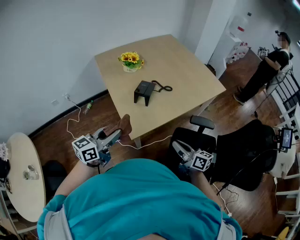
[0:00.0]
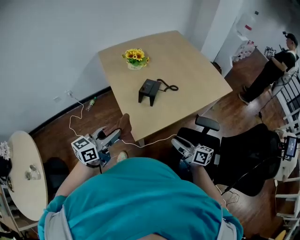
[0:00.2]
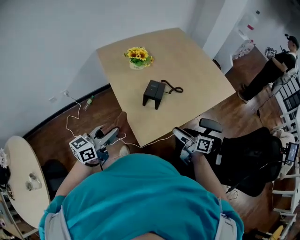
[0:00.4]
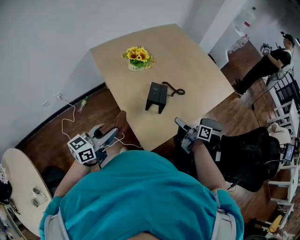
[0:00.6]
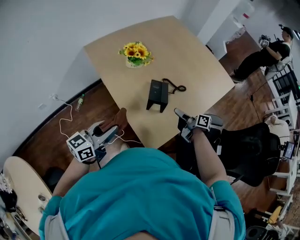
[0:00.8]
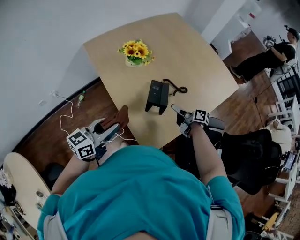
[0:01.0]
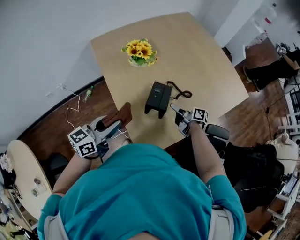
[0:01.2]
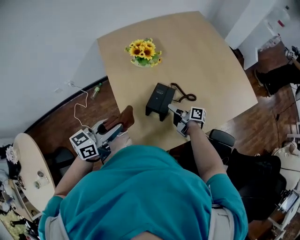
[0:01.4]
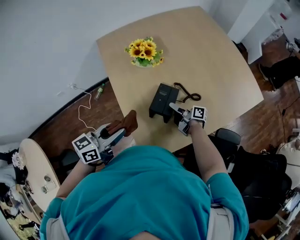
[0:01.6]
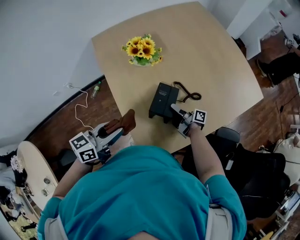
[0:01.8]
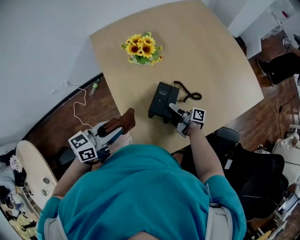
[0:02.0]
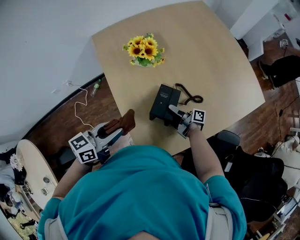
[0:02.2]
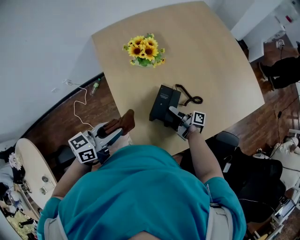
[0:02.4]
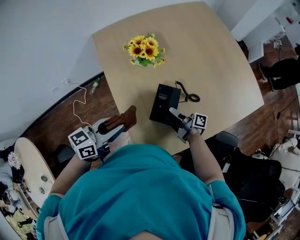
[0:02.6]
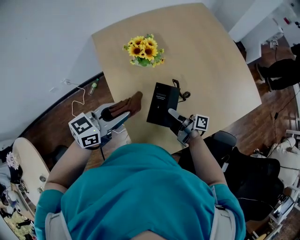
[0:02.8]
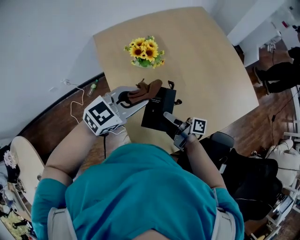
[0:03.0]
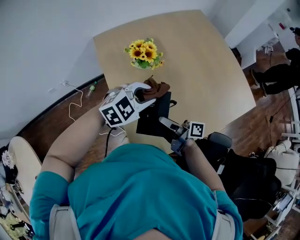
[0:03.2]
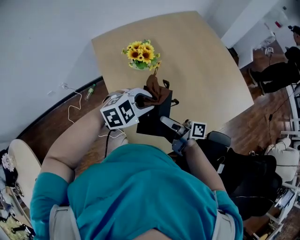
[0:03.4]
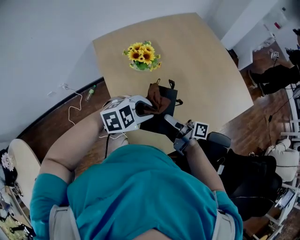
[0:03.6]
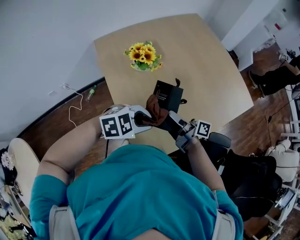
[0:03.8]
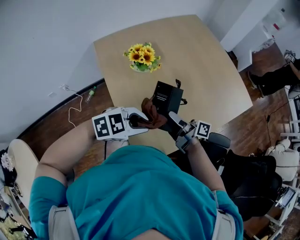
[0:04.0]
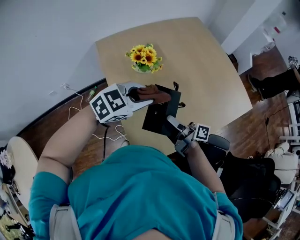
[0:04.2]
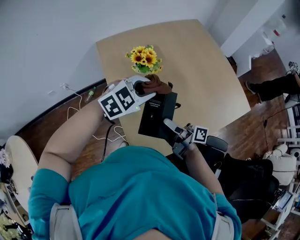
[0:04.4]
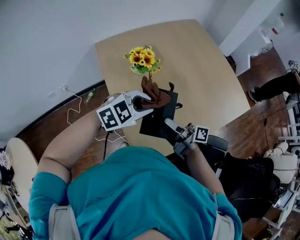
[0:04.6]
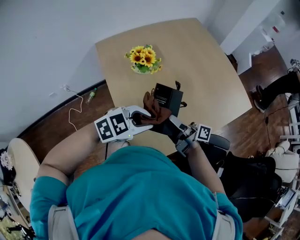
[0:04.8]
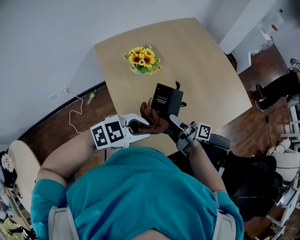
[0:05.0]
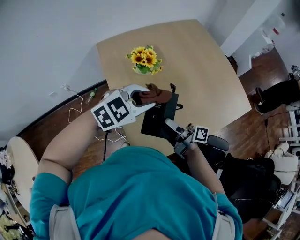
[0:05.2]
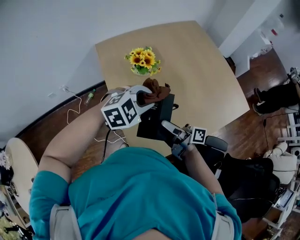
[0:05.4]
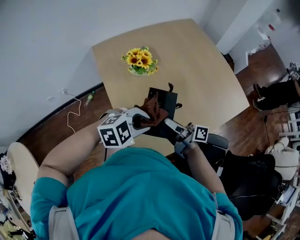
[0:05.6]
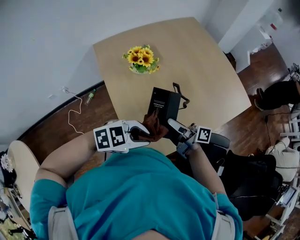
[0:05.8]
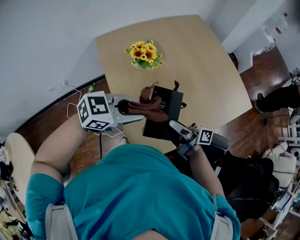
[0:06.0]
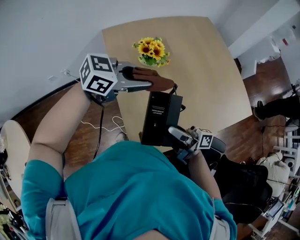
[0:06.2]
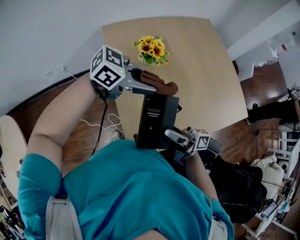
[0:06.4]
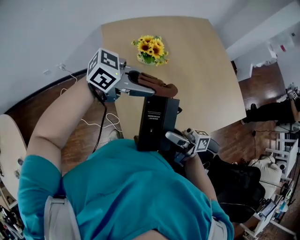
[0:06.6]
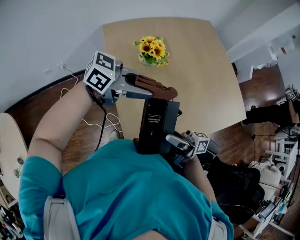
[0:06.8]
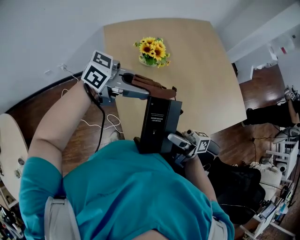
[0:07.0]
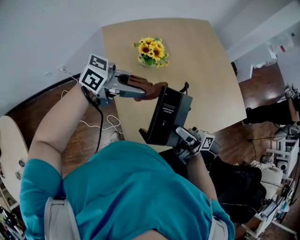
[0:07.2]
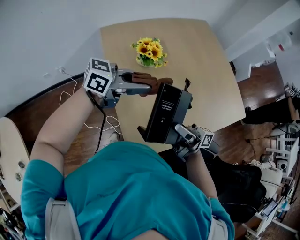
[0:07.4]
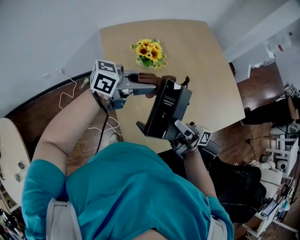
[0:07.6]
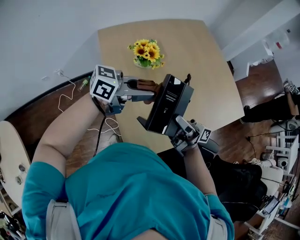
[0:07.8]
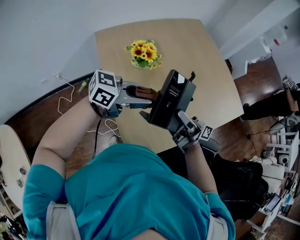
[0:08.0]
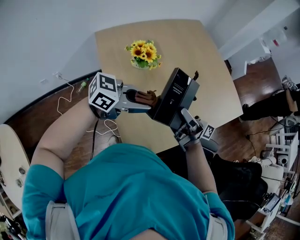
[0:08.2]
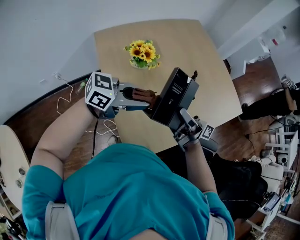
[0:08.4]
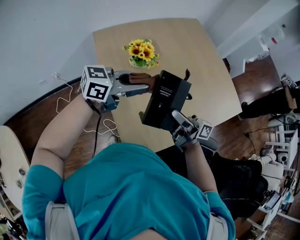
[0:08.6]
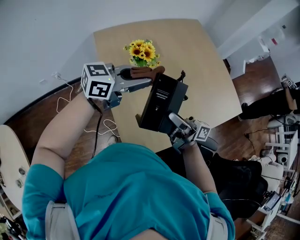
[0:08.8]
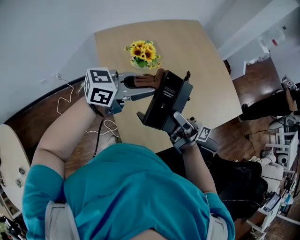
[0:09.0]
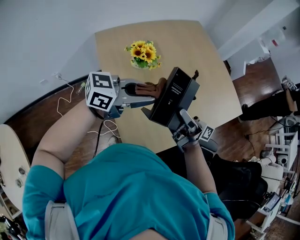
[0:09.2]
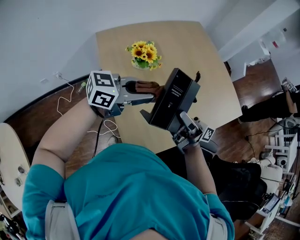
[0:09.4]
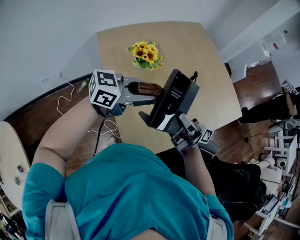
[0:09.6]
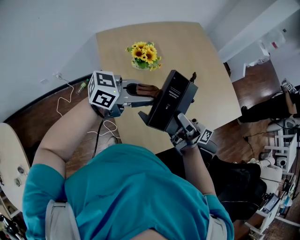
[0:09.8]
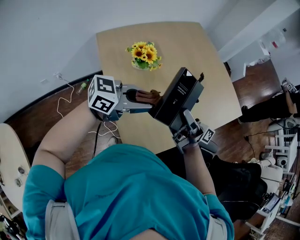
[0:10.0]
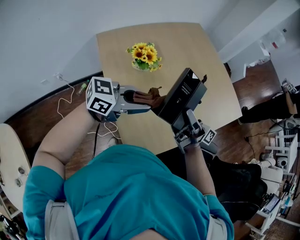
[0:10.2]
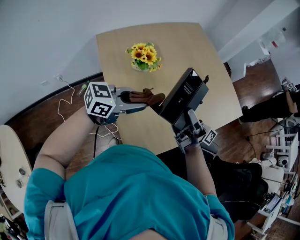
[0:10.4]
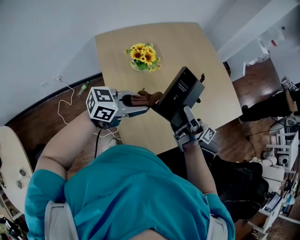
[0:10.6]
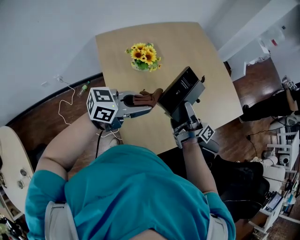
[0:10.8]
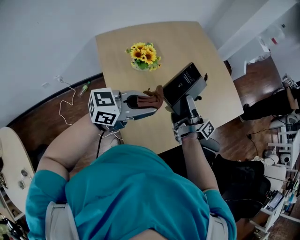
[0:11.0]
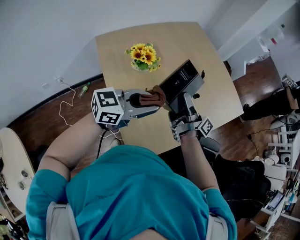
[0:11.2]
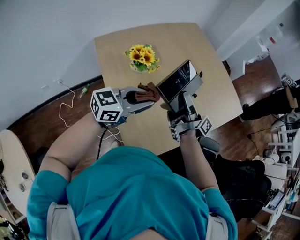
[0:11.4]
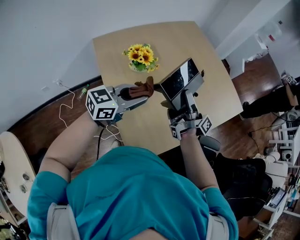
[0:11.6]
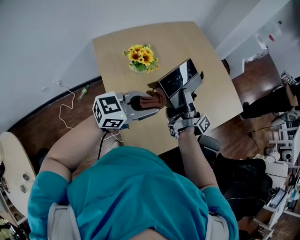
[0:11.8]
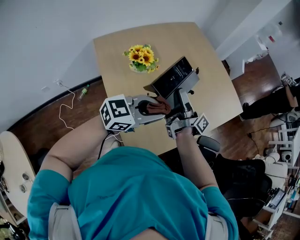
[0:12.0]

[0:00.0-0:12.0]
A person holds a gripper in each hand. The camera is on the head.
0:00.0 to 0:01.6: The left gripper changes place by roughly 25 cm.
0:01.6 to 0:03.0: The left gripper ends up about 15 cm from where it was, and rotates approximately 40 degrees.
0:03.0 to 0:04.4: The left gripper swivels some 20 degrees.
0:04.4 to 0:06.0: The left gripper travels downward and back again, about 5 cm each way, and turns by roughly 30 degrees.
0:06.0 to 0:07.6: The left gripper changes place by some 10 cm, and changes its angle by approximately 30 degrees.
0:09.0 to 0:10.4: The left gripper moves downward, approximately 5 cm.
0:10.4 to 0:12.0: The left gripper changes place by about 5 cm.

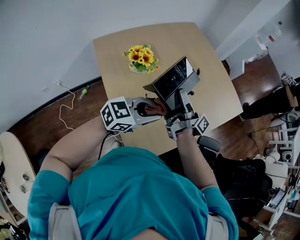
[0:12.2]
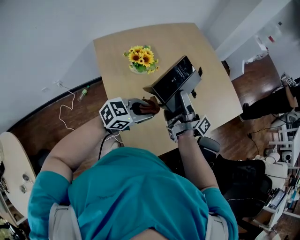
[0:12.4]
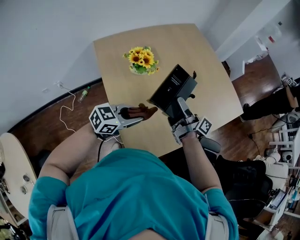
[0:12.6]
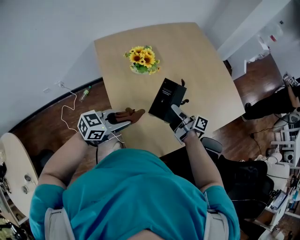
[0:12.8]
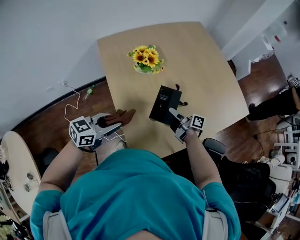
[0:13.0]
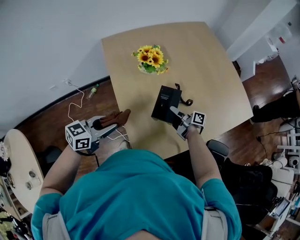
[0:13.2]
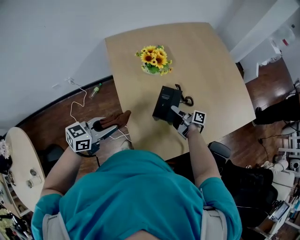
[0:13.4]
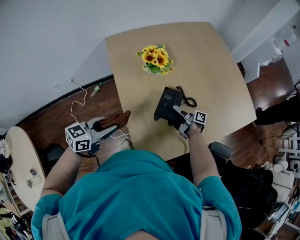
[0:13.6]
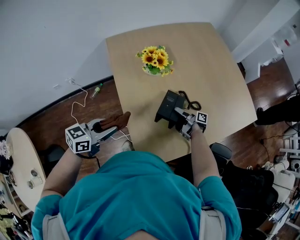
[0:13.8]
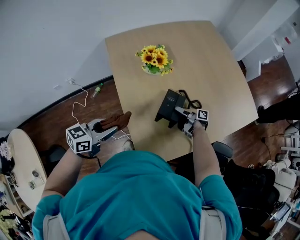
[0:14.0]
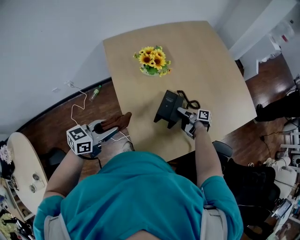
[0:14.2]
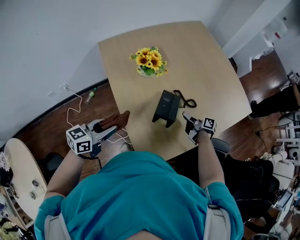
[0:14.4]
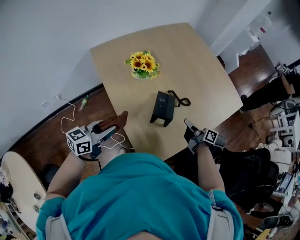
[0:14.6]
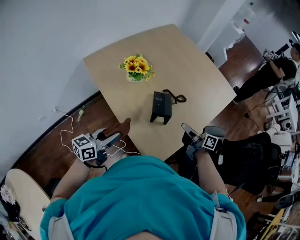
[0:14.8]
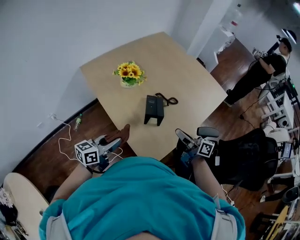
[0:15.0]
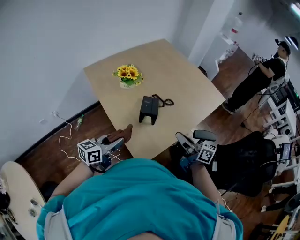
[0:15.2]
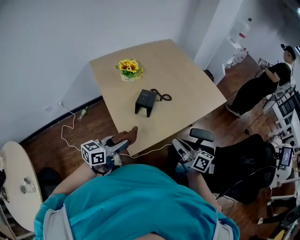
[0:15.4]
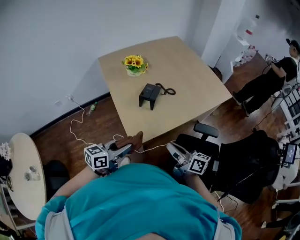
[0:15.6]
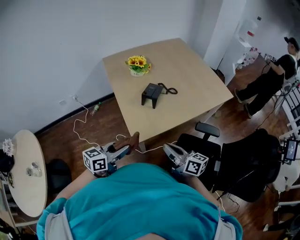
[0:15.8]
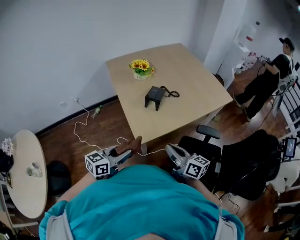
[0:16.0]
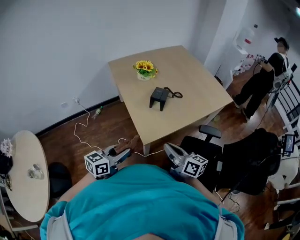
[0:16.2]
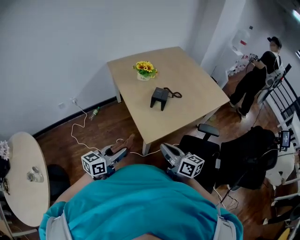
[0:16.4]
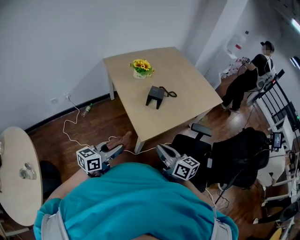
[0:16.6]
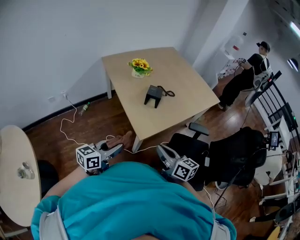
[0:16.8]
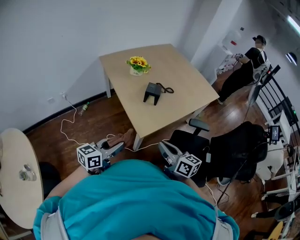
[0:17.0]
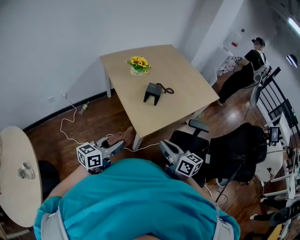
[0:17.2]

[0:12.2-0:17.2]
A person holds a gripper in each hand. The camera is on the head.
0:12.2 to 0:13.8: The left gripper moves approximately 25 cm, and swivels some 40 degrees.
0:13.8 to 0:15.6: The left gripper shifts by about 30 cm.
0:15.6 to 0:17.2: The left gripper ends up some 15 cm from where it was.

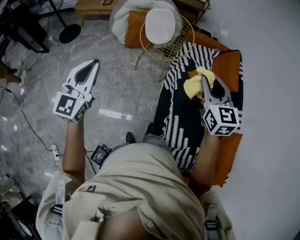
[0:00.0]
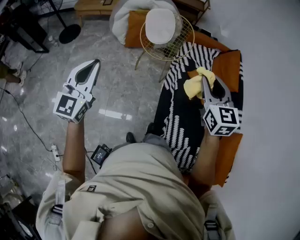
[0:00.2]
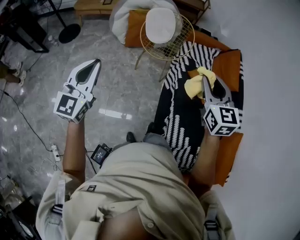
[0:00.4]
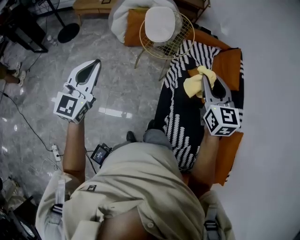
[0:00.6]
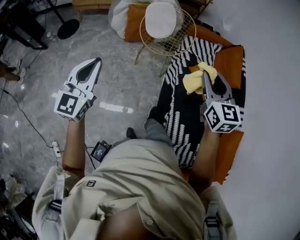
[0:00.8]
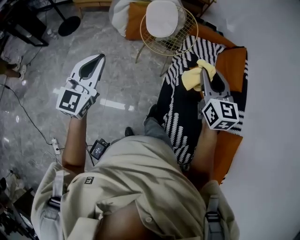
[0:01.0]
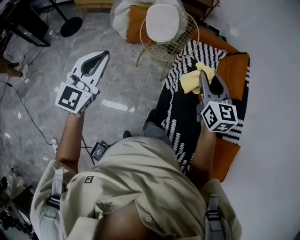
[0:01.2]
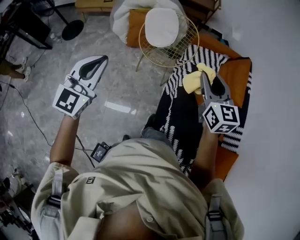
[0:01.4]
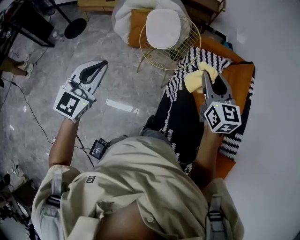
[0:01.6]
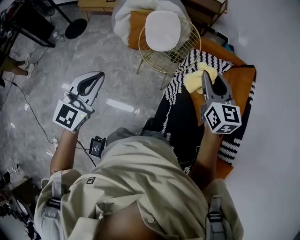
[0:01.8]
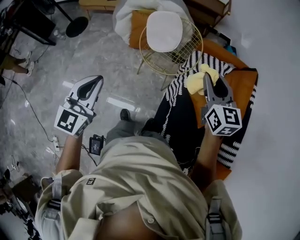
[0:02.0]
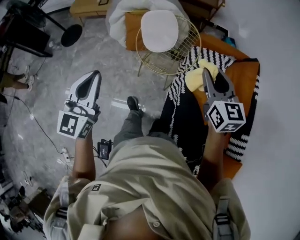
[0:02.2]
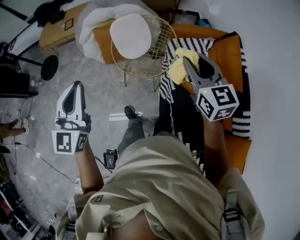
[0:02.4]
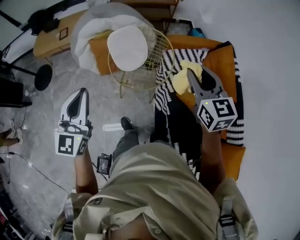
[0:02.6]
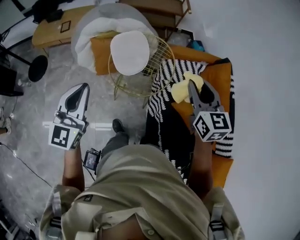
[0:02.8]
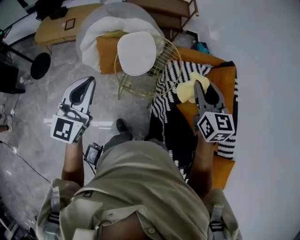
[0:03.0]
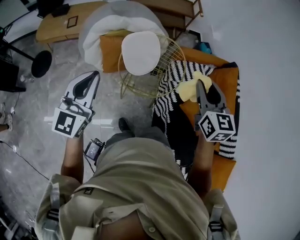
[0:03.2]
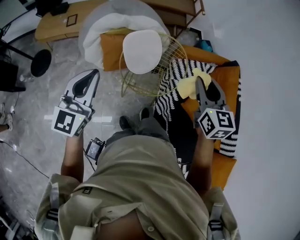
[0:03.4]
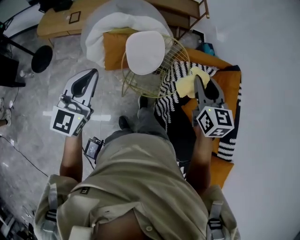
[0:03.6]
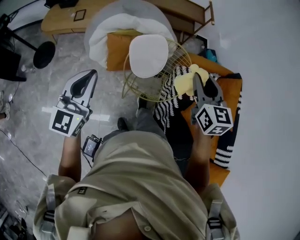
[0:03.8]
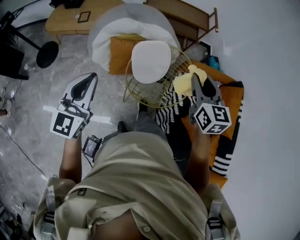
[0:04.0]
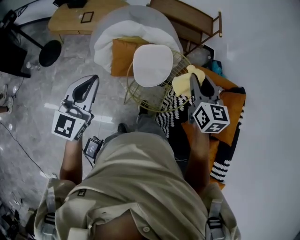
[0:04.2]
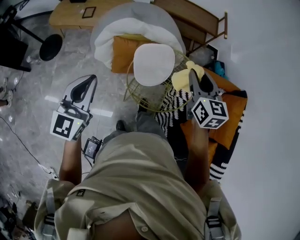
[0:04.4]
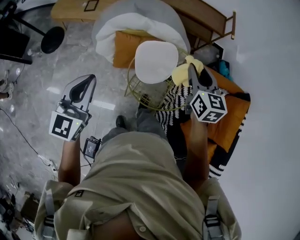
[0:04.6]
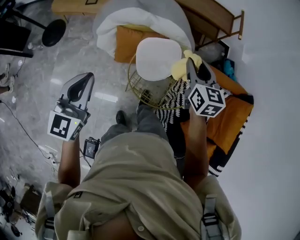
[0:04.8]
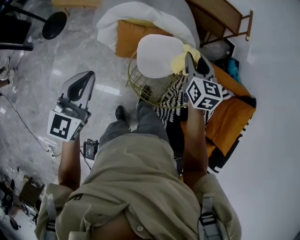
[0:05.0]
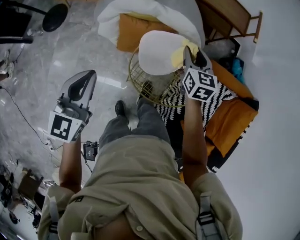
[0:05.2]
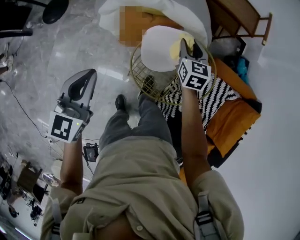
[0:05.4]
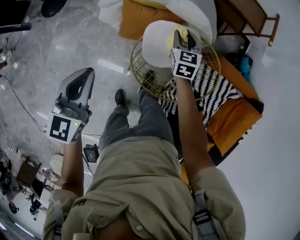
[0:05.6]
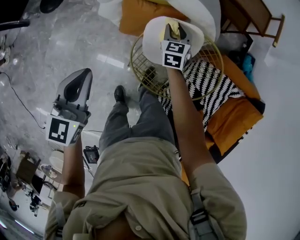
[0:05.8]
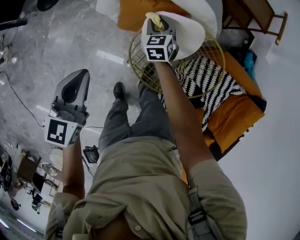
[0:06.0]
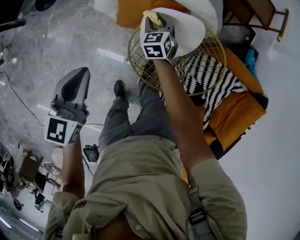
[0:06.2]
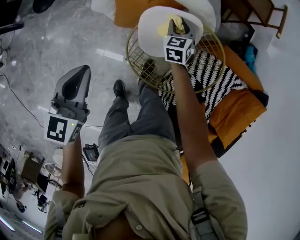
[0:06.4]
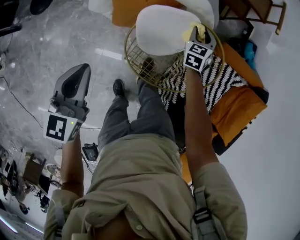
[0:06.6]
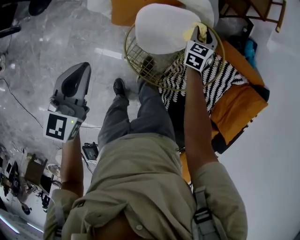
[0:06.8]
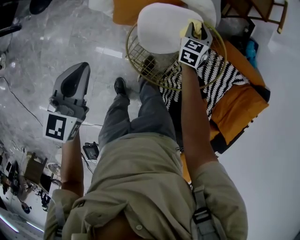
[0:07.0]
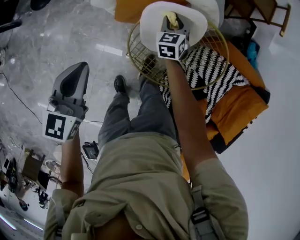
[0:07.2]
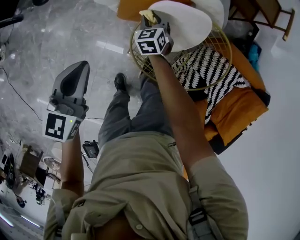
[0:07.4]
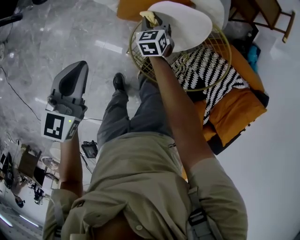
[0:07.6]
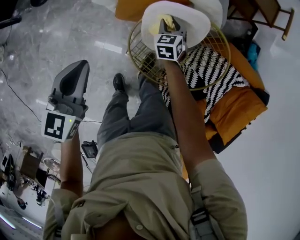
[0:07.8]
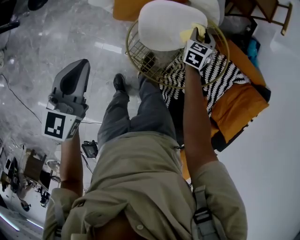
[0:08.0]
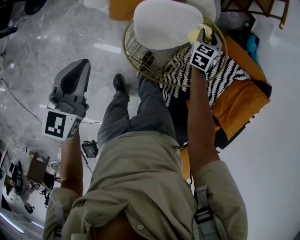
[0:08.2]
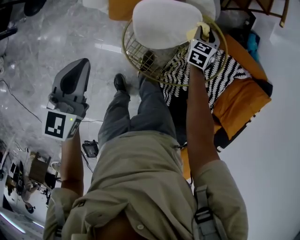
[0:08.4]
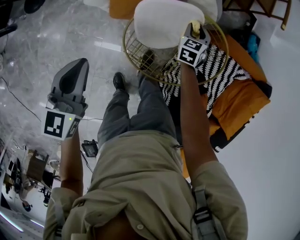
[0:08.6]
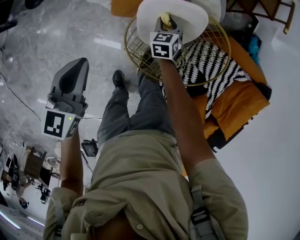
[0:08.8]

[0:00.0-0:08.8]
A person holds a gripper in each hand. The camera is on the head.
0:00.0 to 0:01.4: The left gripper heads forward and to the right, covering some 20 cm. Meanwhile the right gripper moves forward, approximately 20 cm.
0:01.4 to 0:03.0: The two grippers go approximately 30 cm forward.
0:03.0 to 0:04.4: The left gripper goes some 15 cm forward and to the left, while the right gripper heads forward and to the left, covering about 25 cm.
0:04.4 to 0:05.8: The left gripper heads downward and forward, covering approximately 25 cm, and rotates approximately 20 degrees. Meanwhile the right gripper goes approximately 50 cm downward and forward, and swivels approximately 20 degrees.
0:05.8 to 0:07.4: The right gripper moves left and right over approximately 25 cm, changing direction 2 times.
0:07.4 to 0:08.8: The right gripper travels to the right by about 10 cm.
